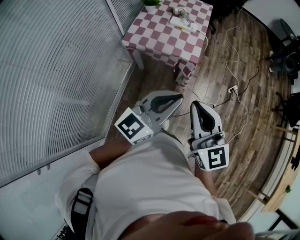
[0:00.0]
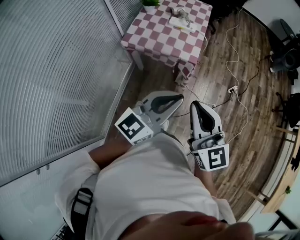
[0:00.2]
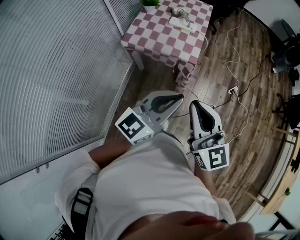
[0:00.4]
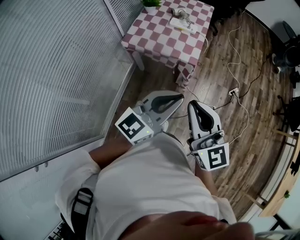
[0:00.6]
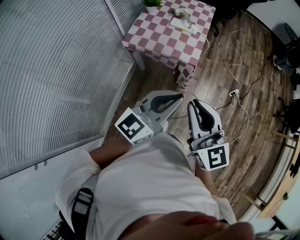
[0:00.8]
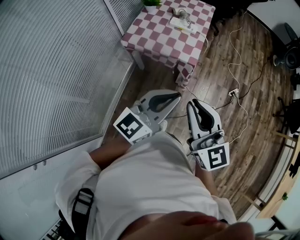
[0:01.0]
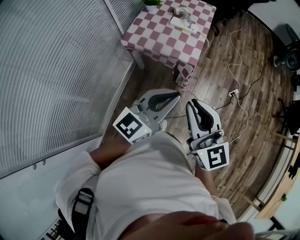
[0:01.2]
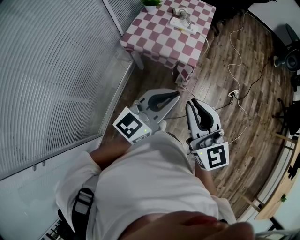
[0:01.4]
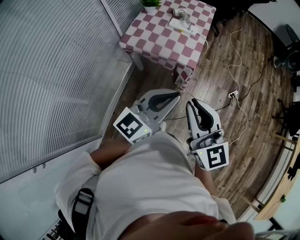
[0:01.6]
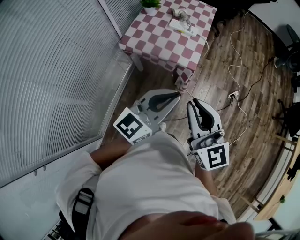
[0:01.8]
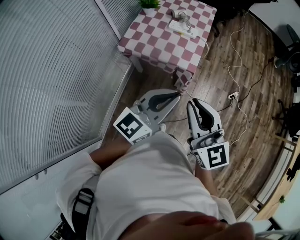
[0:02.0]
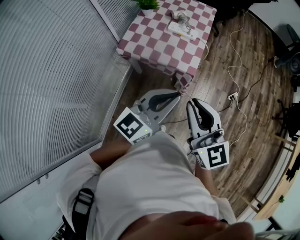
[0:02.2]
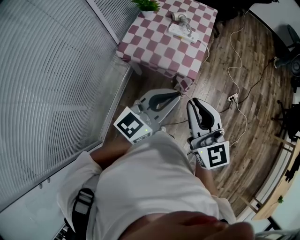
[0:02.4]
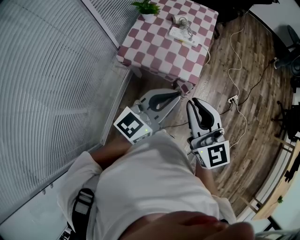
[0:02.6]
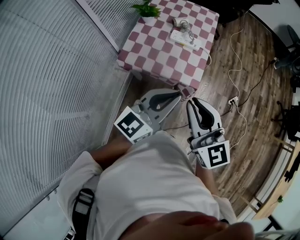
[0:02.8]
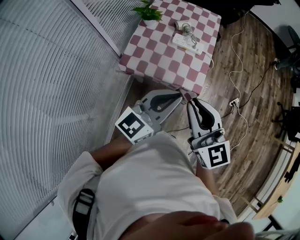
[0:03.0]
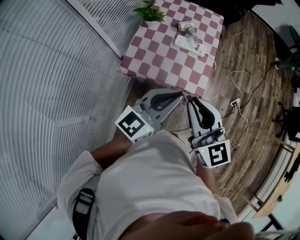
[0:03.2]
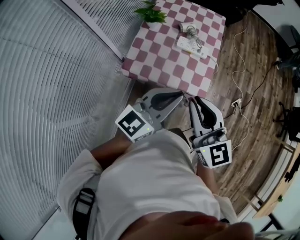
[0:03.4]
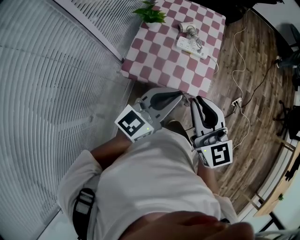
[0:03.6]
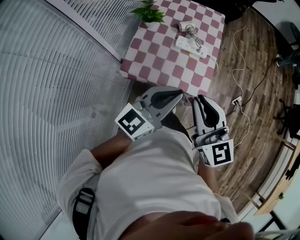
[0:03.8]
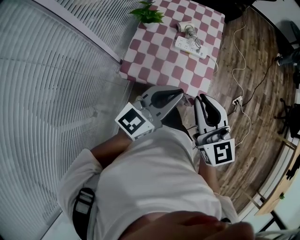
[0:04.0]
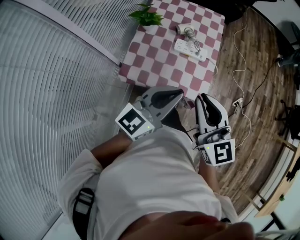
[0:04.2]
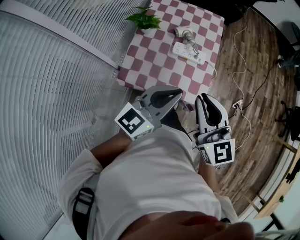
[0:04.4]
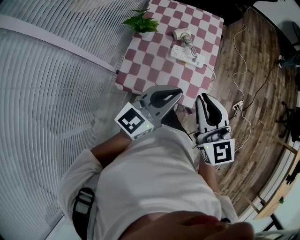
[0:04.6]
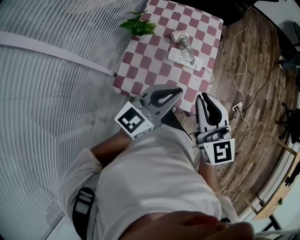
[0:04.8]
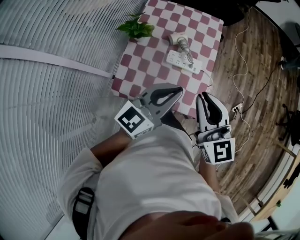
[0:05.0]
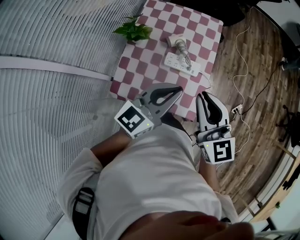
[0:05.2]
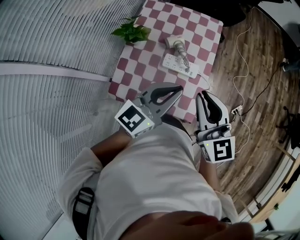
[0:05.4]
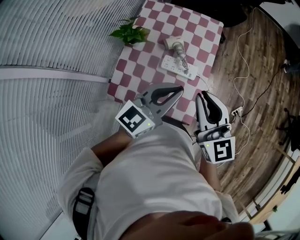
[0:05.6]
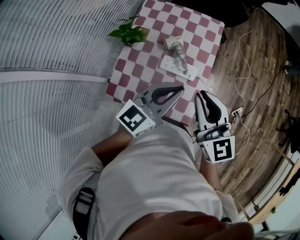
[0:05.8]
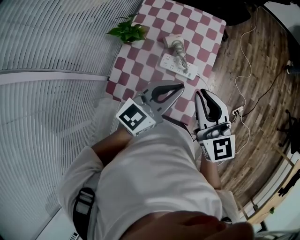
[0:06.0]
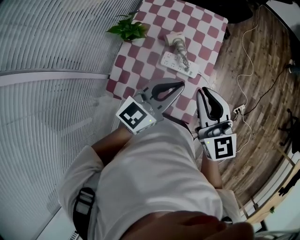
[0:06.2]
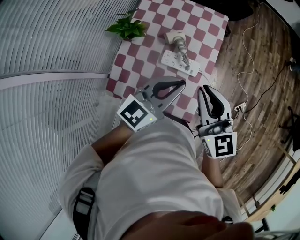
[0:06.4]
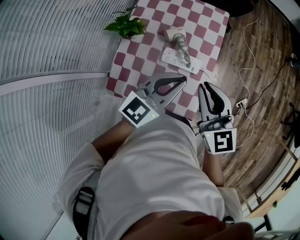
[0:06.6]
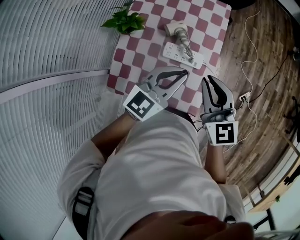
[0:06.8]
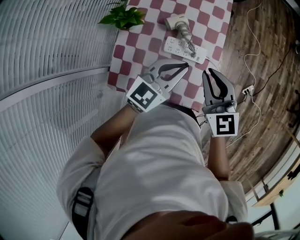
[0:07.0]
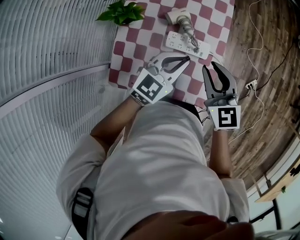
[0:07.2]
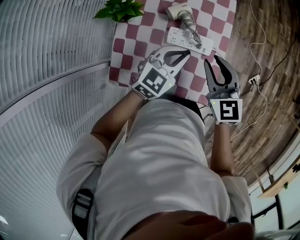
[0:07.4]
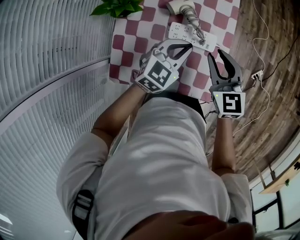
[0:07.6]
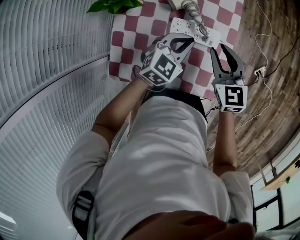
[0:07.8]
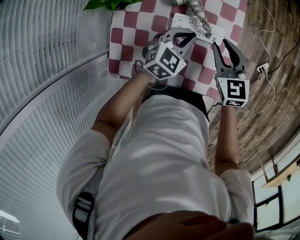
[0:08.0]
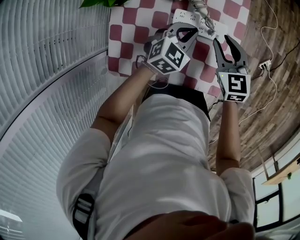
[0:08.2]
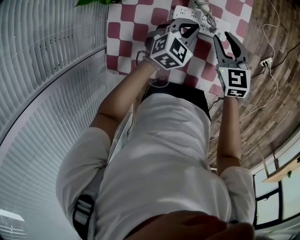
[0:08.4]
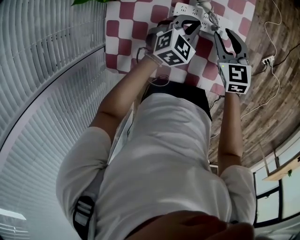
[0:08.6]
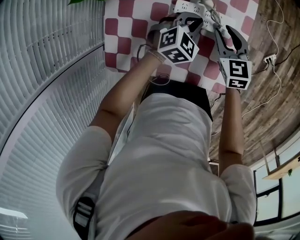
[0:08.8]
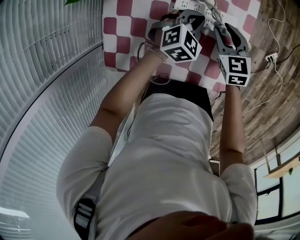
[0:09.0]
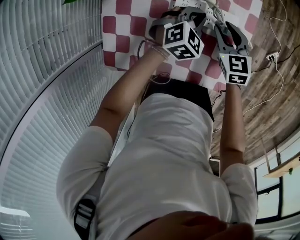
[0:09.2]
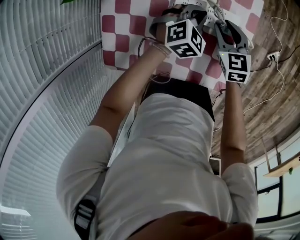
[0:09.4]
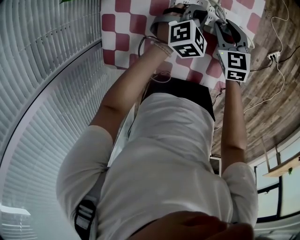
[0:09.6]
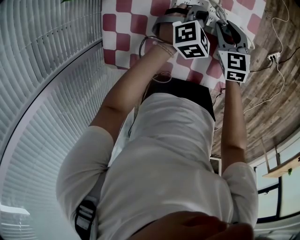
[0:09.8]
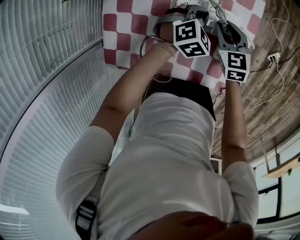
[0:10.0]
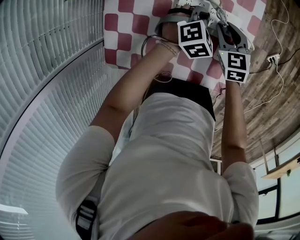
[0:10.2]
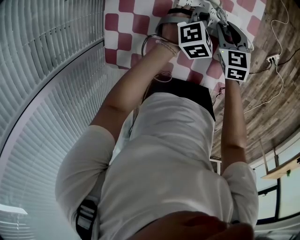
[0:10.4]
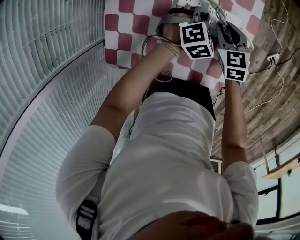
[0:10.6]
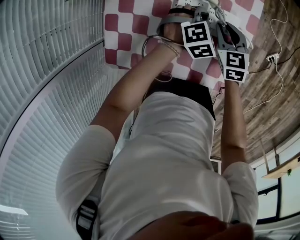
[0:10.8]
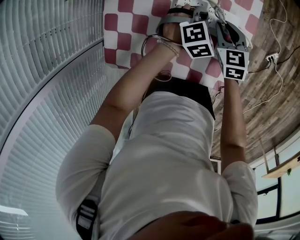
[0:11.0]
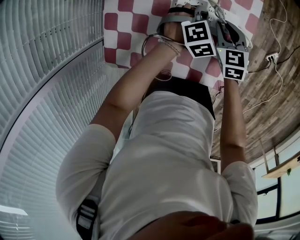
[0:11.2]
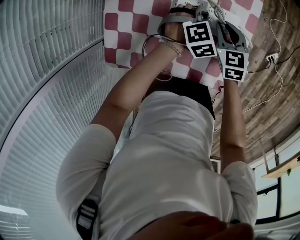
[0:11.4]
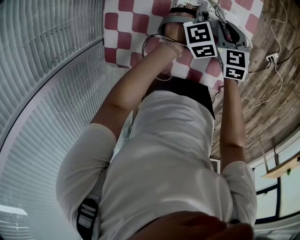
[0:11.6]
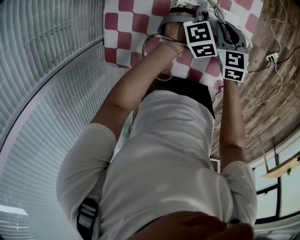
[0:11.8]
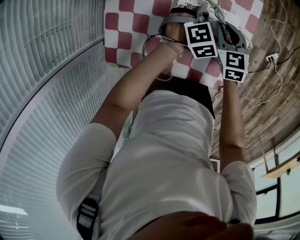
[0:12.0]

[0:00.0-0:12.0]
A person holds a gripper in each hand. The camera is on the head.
0:00.0 to 0:01.6: The grippers both shift forward by roughly 5 cm.
0:01.6 to 0:03.0: The grippers both shift forward and to the left by about 20 cm.
0:03.0 to 0:04.4: Both grippers move forward, roughly 15 cm.
0:04.4 to 0:06.0: Both grippers travel together forward, roughly 20 cm.
0:06.0 to 0:07.6: The left gripper moves downward, some 20 cm, and changes its angle by roughly 30 degrees. The right gripper travels downward and forward by approximately 20 cm, and rotates approximately 20 degrees.
0:07.6 to 0:09.0: Both grippers travel together downward, some 15 cm. The left gripper changes its angle by some 20 degrees.
0:09.0 to 0:10.4: The grippers move only a little.
0:10.4 to 0:12.0: The grippers make only small movements.

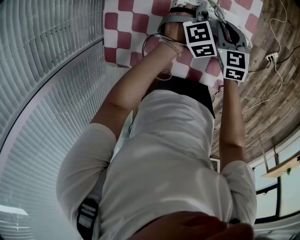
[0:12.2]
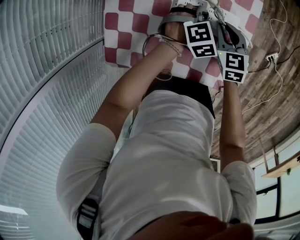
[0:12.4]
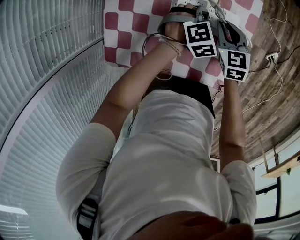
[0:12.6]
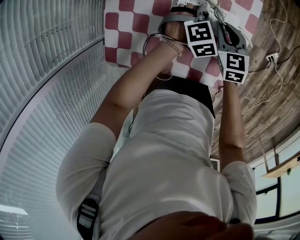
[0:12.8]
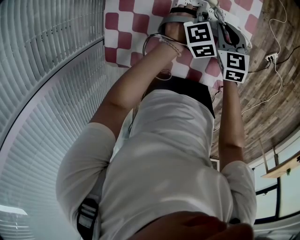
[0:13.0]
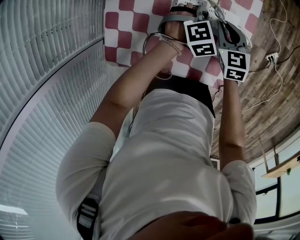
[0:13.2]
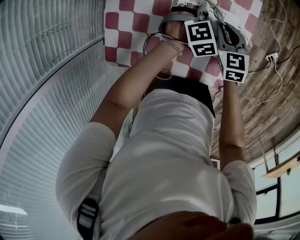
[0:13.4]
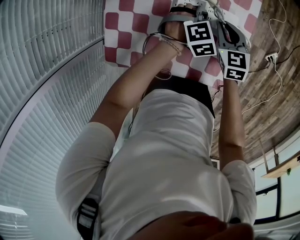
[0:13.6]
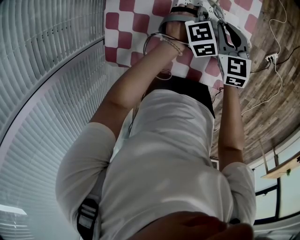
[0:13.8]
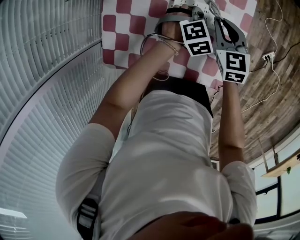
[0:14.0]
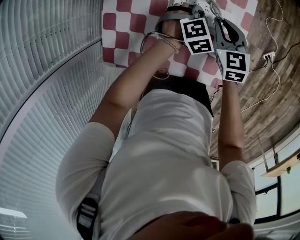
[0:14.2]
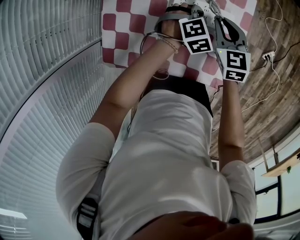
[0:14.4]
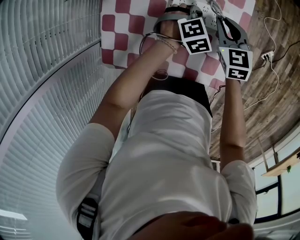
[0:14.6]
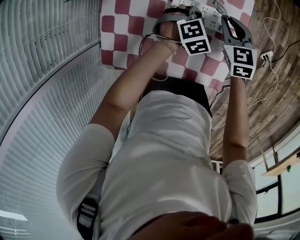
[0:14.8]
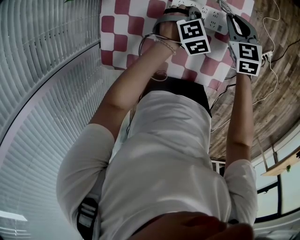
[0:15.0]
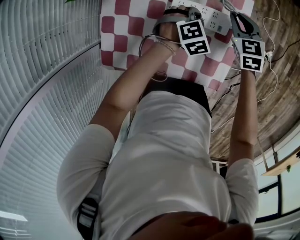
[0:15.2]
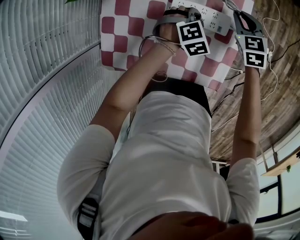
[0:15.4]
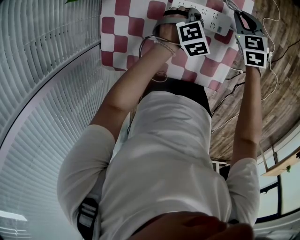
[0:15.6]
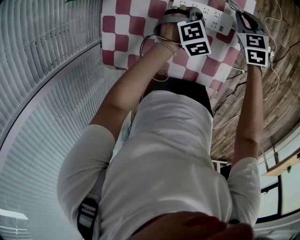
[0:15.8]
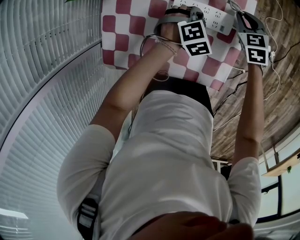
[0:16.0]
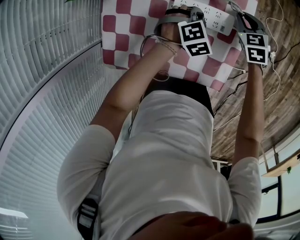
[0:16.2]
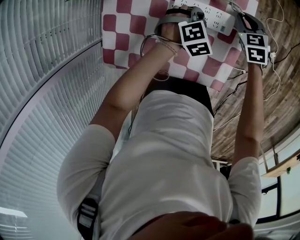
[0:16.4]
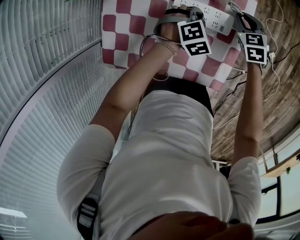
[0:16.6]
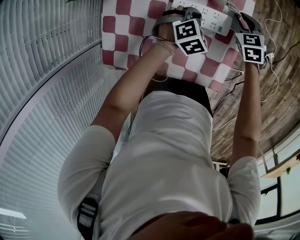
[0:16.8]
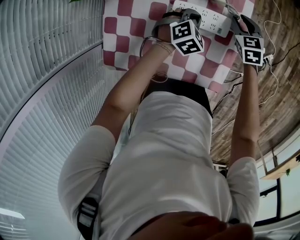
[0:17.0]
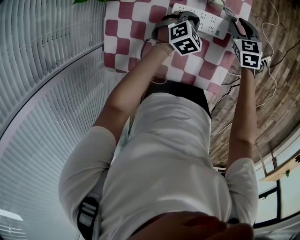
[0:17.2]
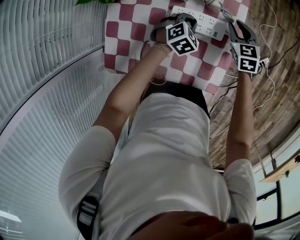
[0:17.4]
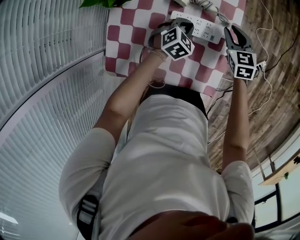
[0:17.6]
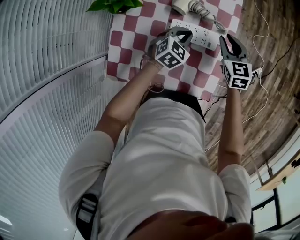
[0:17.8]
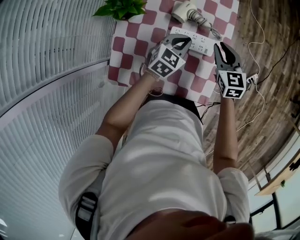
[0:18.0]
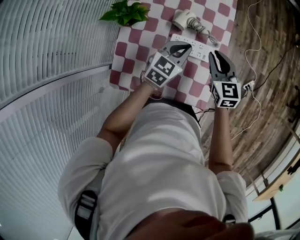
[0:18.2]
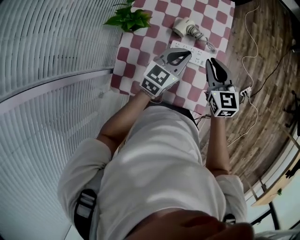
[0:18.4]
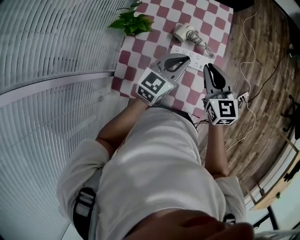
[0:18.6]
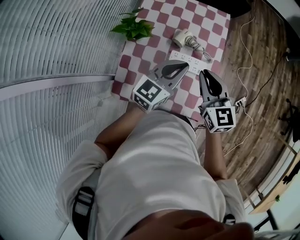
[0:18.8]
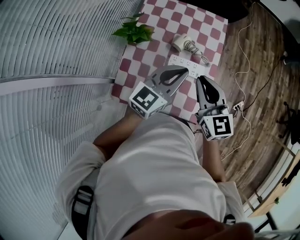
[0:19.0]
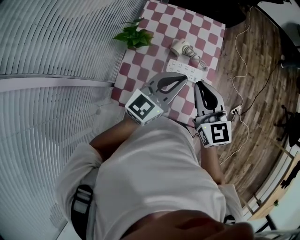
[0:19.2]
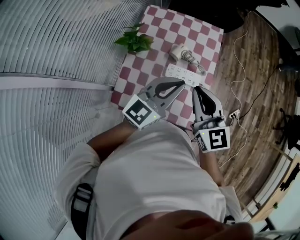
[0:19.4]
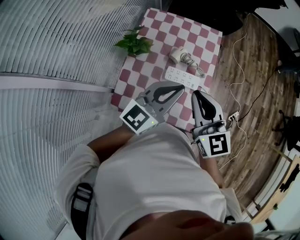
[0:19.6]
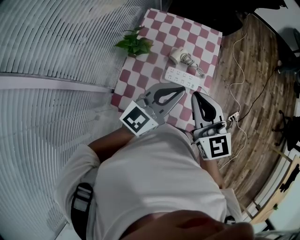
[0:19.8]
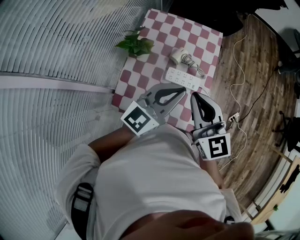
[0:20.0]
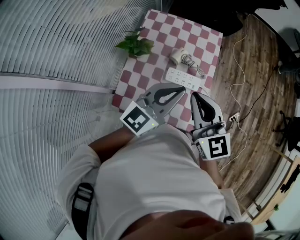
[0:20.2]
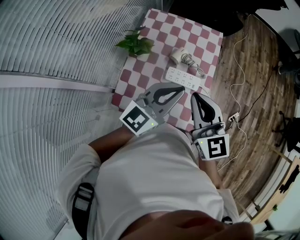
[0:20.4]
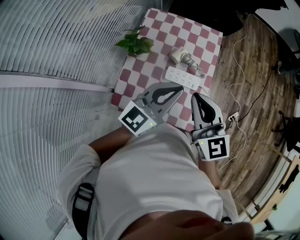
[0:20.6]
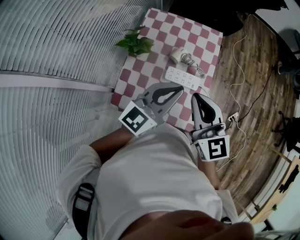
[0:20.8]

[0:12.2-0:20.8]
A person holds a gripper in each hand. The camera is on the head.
0:12.2 to 0:13.6: Both grippers stay about where they are.
0:13.6 to 0:15.0: The right gripper ends up roughly 5 cm from where it was.
0:15.0 to 0:16.6: The right gripper moves some 5 cm.
0:16.6 to 0:18.0: Both grippers move upward, about 15 cm. The left gripper swivels roughly 40 degrees. The right gripper turns by about 20 degrees.
0:18.0 to 0:19.4: The left gripper travels upward by about 30 cm, and angles its fingers upward, by roughly 30 degrees; the right gripper travels upward and backward by about 30 cm, and turns by about 20 degrees.
0:19.4 to 0:20.8: There are only small adjustments of the grippers.

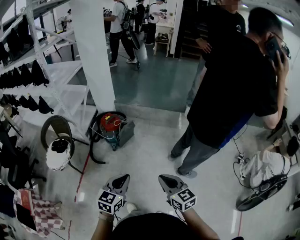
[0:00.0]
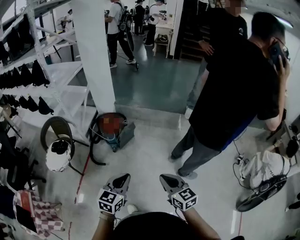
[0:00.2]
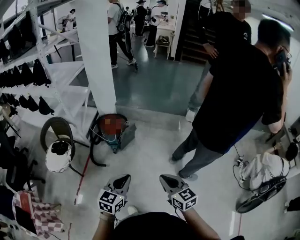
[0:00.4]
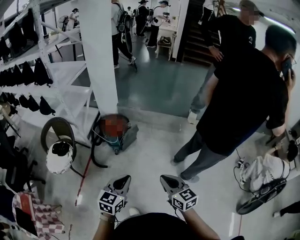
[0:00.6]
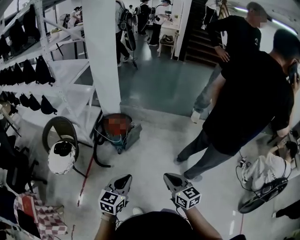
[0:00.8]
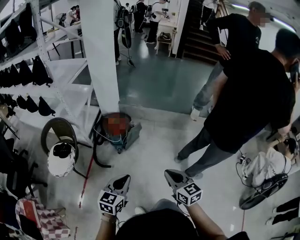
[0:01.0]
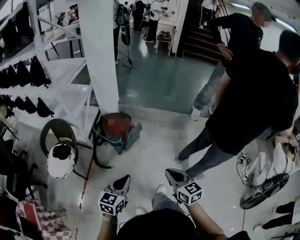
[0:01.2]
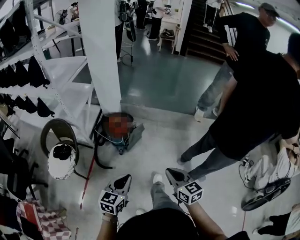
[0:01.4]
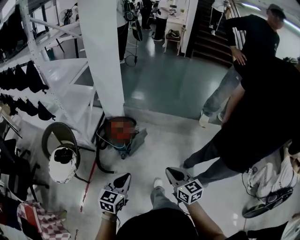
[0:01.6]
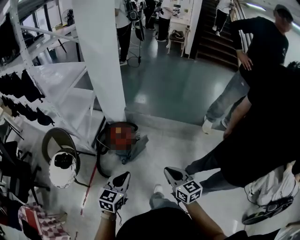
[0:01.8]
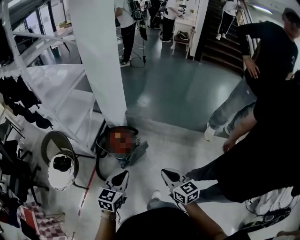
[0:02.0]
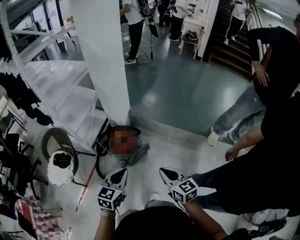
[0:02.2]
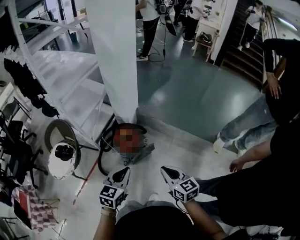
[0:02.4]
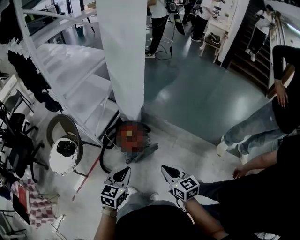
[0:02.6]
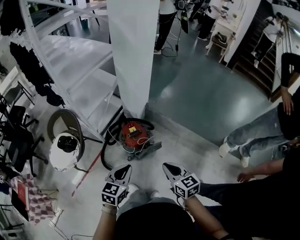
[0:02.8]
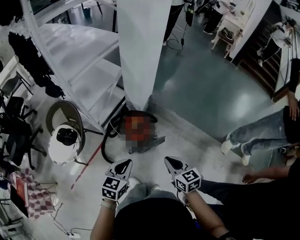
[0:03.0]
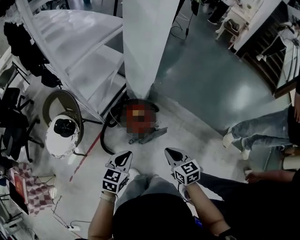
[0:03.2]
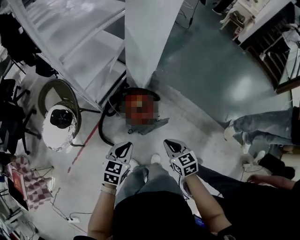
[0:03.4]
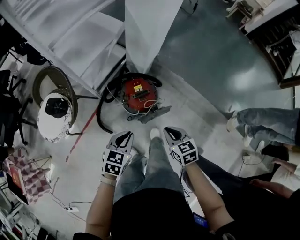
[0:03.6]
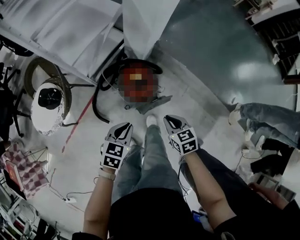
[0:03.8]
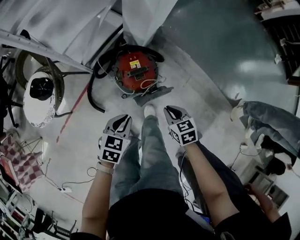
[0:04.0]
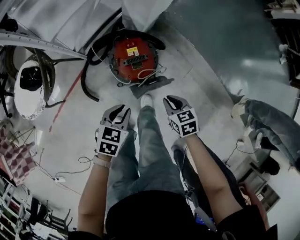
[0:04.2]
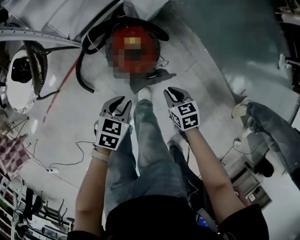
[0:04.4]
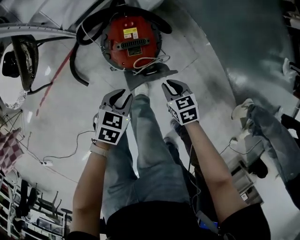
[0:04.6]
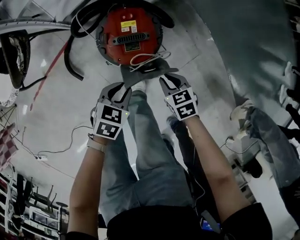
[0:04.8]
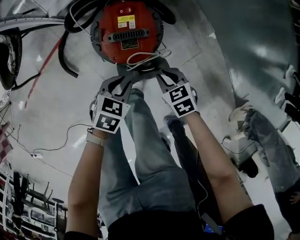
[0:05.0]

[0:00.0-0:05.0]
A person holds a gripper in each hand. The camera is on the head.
0:00.0 to 0:01.6: The two grippers go some 25 cm forward and to the left.
0:01.6 to 0:03.4: The two grippers go roughly 35 cm forward. The left gripper rotates some 20 degrees. The right gripper swivels some 30 degrees.
0:03.4 to 0:05.0: The grippers both shift downward by about 40 cm. The right gripper turns by roughly 40 degrees, while the left gripper rotates about 30 degrees.
